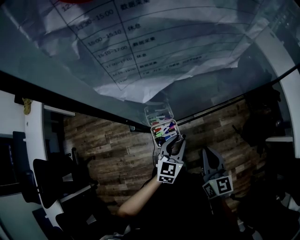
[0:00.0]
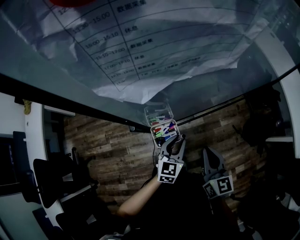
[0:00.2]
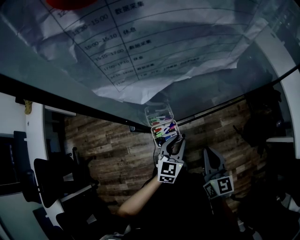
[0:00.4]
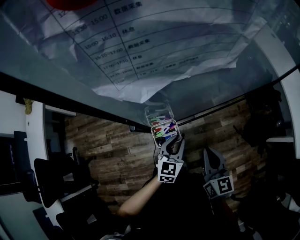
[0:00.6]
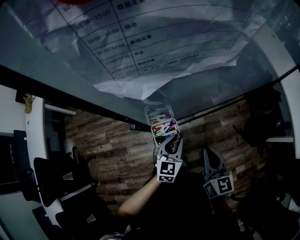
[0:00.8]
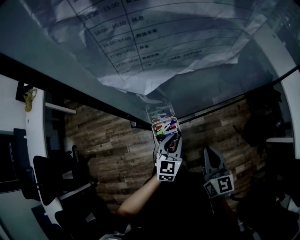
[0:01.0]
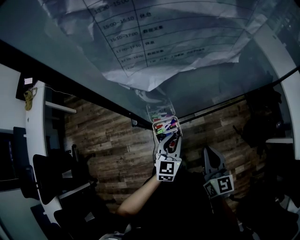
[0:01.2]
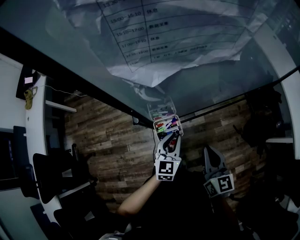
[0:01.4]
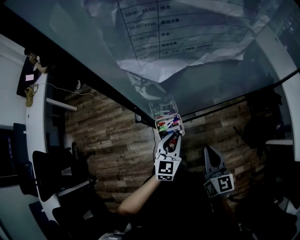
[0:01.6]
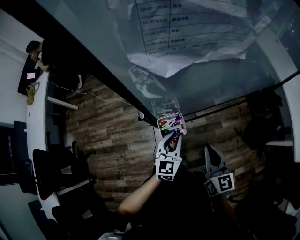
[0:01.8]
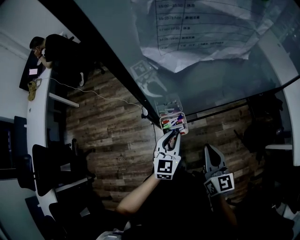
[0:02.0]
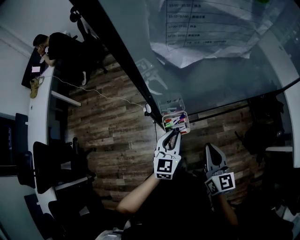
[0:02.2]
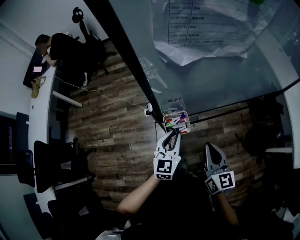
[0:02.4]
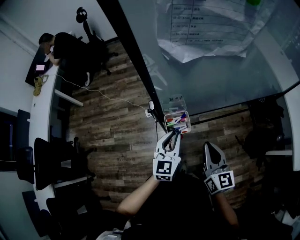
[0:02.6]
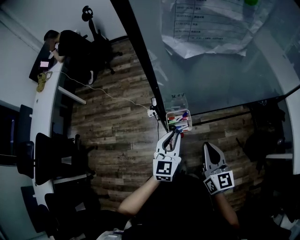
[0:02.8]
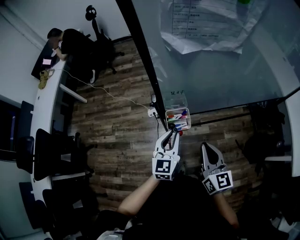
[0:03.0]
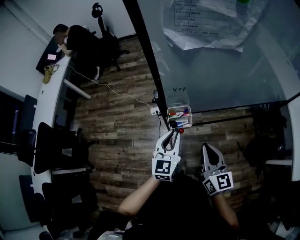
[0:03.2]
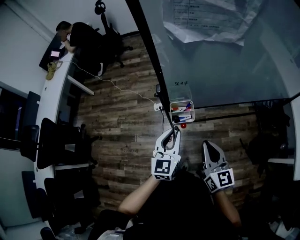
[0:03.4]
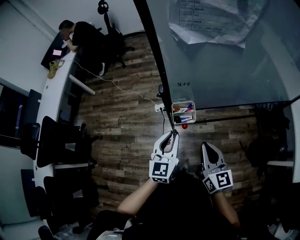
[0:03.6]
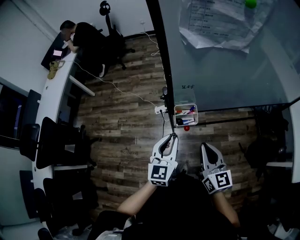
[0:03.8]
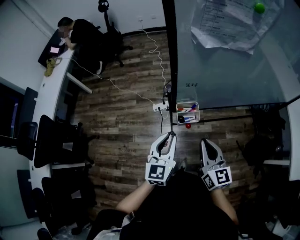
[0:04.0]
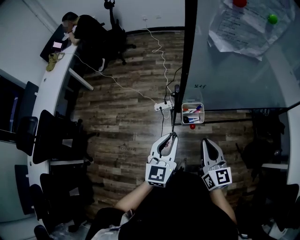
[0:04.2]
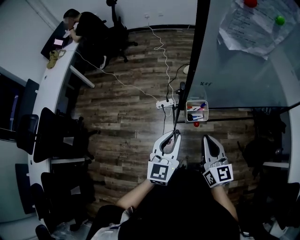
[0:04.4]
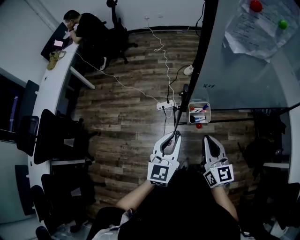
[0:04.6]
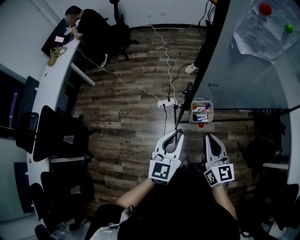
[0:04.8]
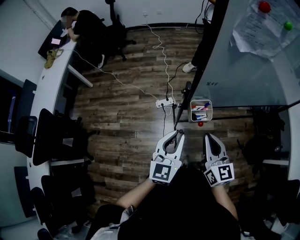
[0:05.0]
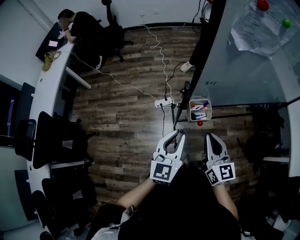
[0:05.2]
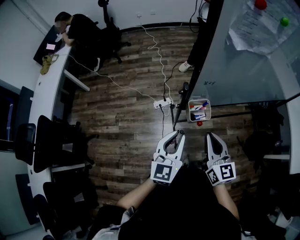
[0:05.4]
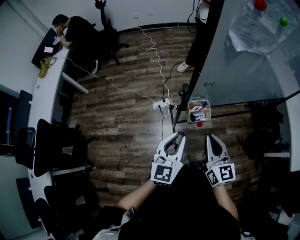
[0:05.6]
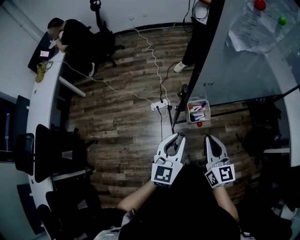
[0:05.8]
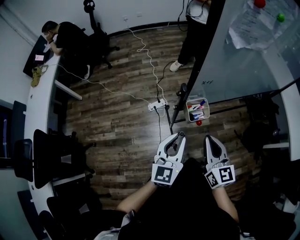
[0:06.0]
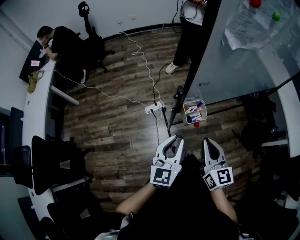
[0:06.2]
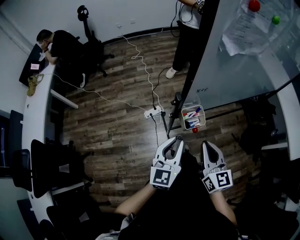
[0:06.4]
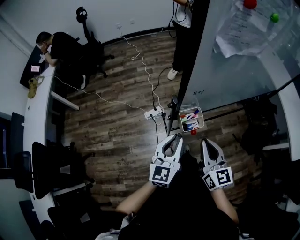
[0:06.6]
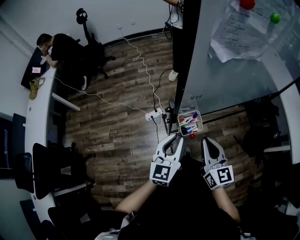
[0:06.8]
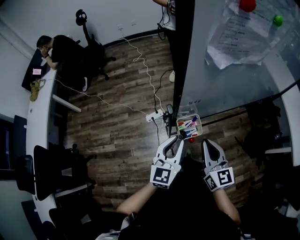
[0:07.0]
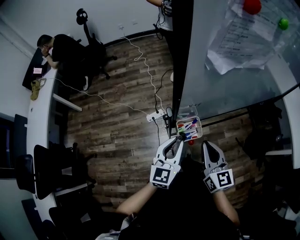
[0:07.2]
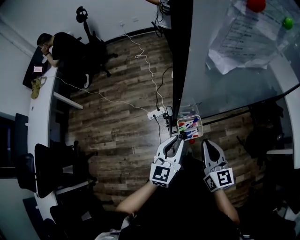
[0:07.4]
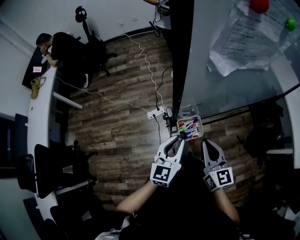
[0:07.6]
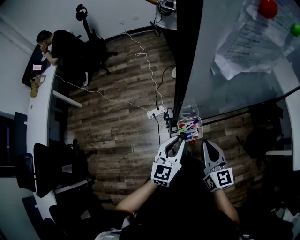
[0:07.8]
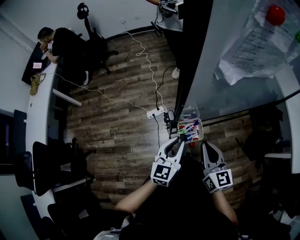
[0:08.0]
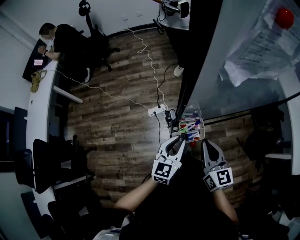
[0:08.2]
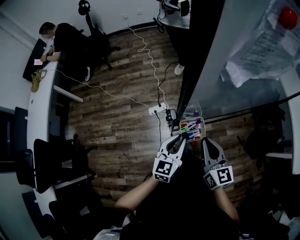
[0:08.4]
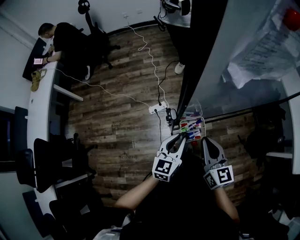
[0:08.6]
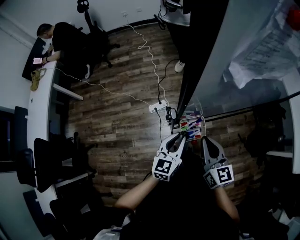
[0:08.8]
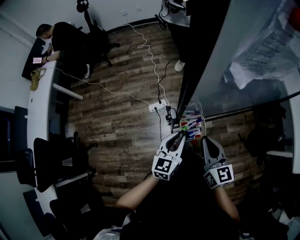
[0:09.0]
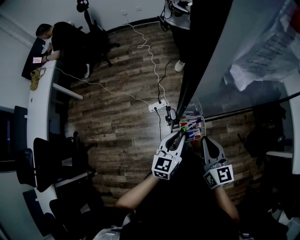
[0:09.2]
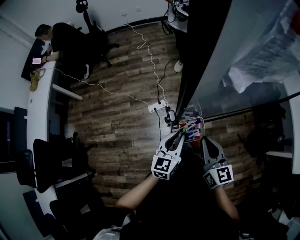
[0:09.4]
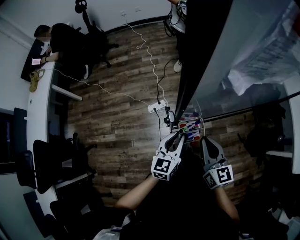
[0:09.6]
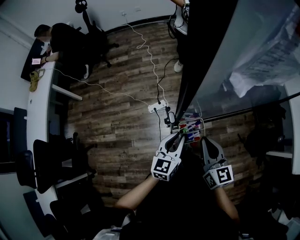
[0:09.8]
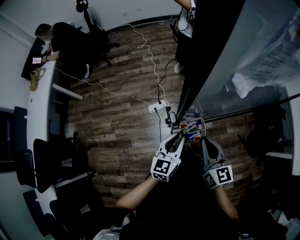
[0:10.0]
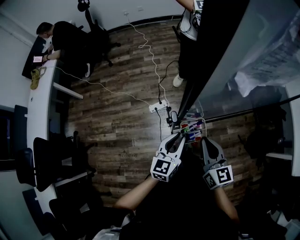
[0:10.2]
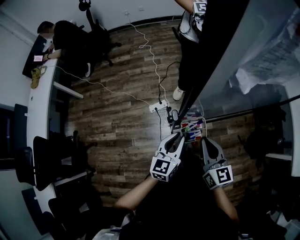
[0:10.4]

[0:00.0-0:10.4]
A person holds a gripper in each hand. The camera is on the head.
0:00.0 to 0:01.4: The grippers move only a little.
0:01.4 to 0:03.0: The right gripper ends up roughly 5 cm from where it was, while the left gripper heads upward, covering roughly 5 cm.
0:03.0 to 0:04.4: The left gripper heads to the left, upward and backward, covering about 15 cm, while the right gripper shifts some 10 cm to the left.
0:04.4 to 0:06.0: There are only small adjustments of the grippers.
0:06.0 to 0:07.4: Both grippers move forward, about 10 cm.
0:07.4 to 0:09.0: The left gripper is displaced downward by roughly 5 cm.
0:09.0 to 0:10.4: Both grippers stay about where they are.

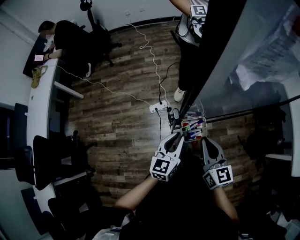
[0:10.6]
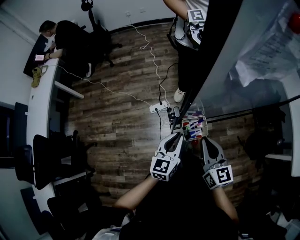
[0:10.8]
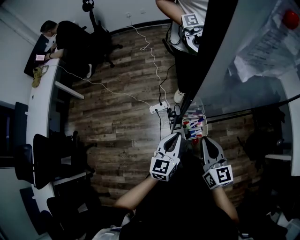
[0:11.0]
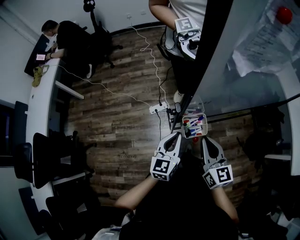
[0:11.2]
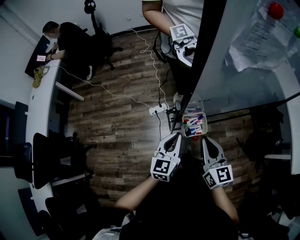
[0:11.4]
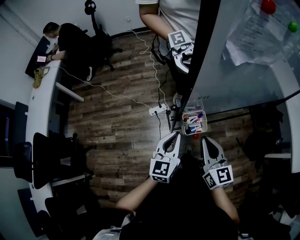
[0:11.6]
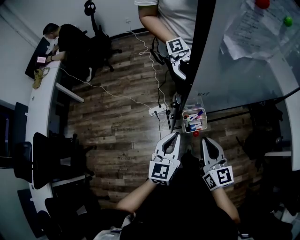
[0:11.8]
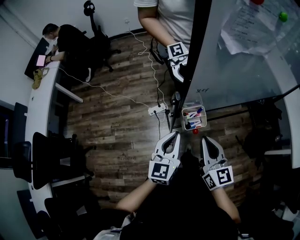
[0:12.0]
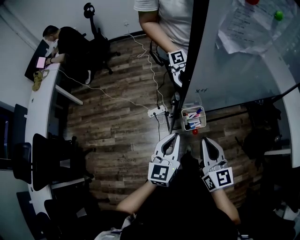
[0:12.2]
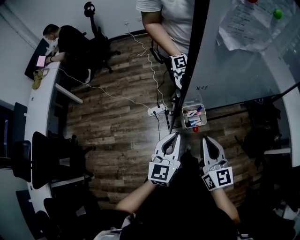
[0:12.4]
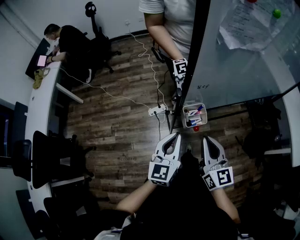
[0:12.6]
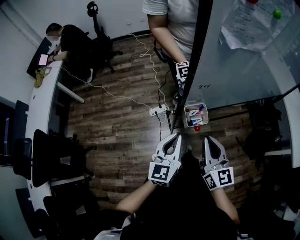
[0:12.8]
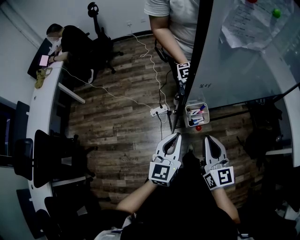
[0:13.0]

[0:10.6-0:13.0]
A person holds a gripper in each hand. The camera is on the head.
0:10.6 to 0:11.8: The left gripper moves upward and backward, roughly 10 cm. Meanwhile the right gripper goes some 5 cm backward.
0:11.8 to 0:13.0: The grippers move only a little.

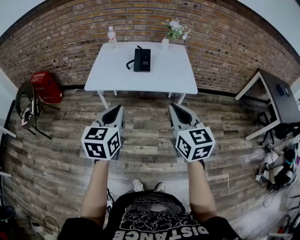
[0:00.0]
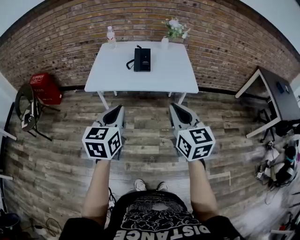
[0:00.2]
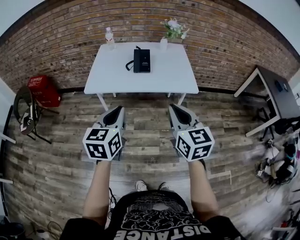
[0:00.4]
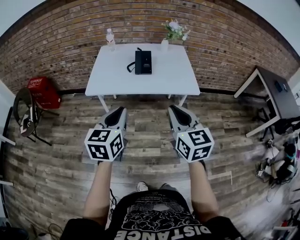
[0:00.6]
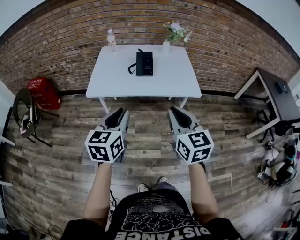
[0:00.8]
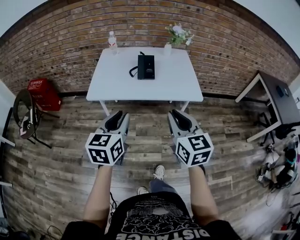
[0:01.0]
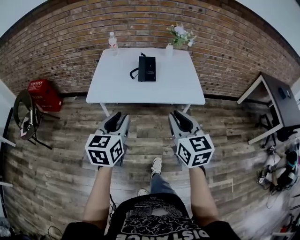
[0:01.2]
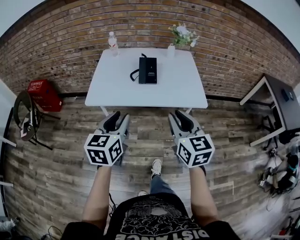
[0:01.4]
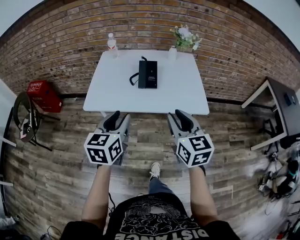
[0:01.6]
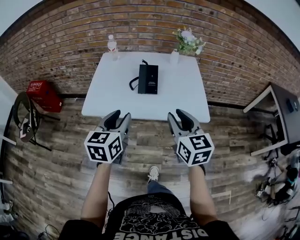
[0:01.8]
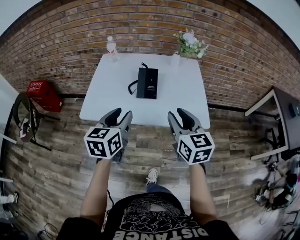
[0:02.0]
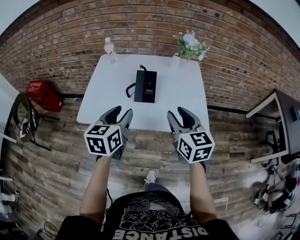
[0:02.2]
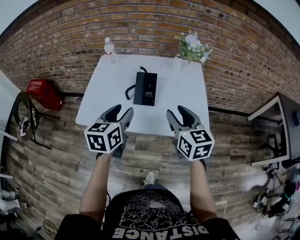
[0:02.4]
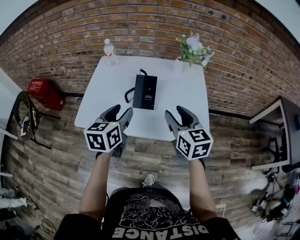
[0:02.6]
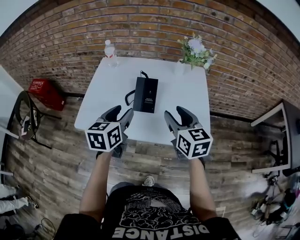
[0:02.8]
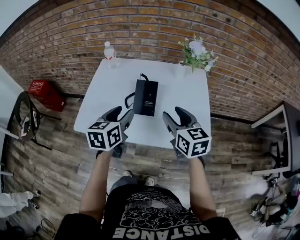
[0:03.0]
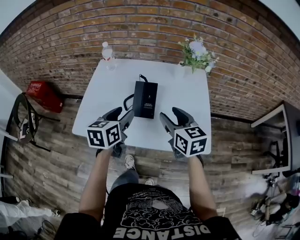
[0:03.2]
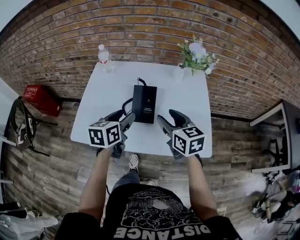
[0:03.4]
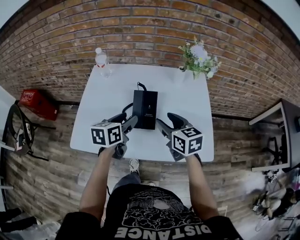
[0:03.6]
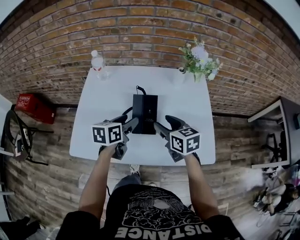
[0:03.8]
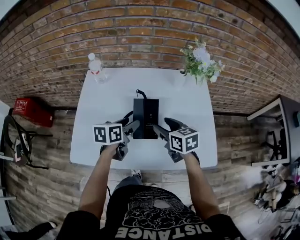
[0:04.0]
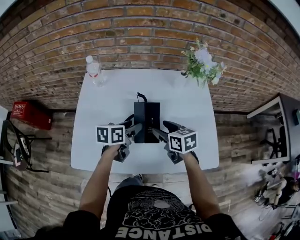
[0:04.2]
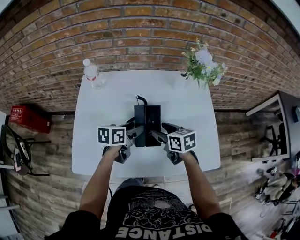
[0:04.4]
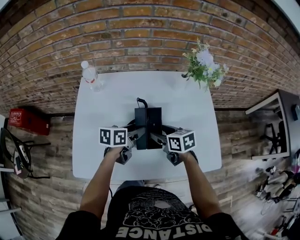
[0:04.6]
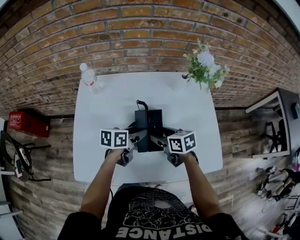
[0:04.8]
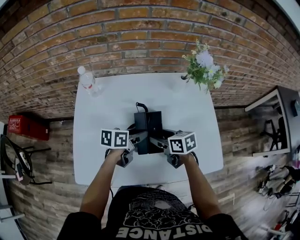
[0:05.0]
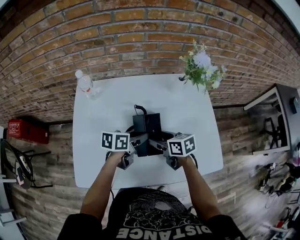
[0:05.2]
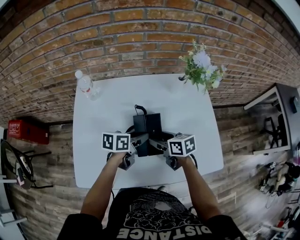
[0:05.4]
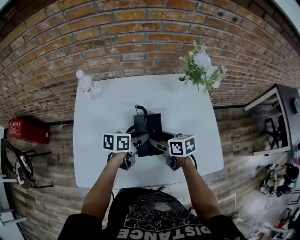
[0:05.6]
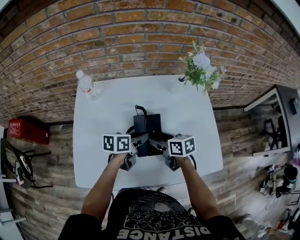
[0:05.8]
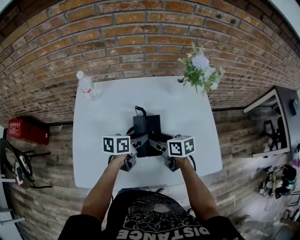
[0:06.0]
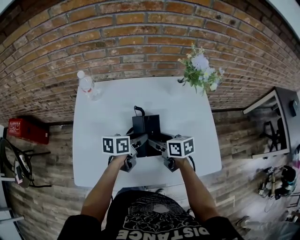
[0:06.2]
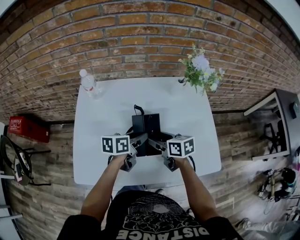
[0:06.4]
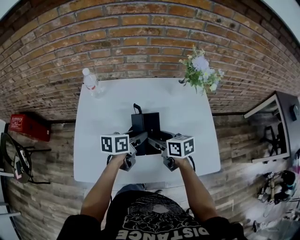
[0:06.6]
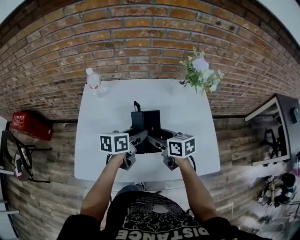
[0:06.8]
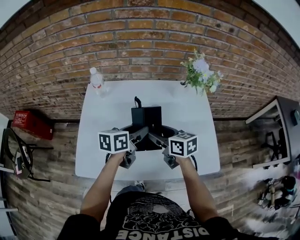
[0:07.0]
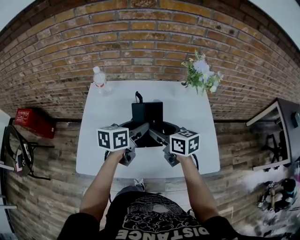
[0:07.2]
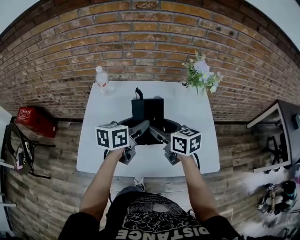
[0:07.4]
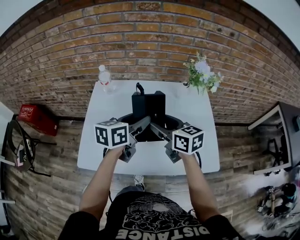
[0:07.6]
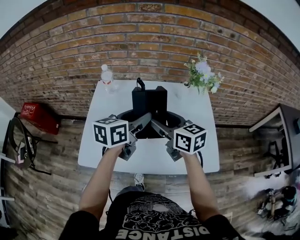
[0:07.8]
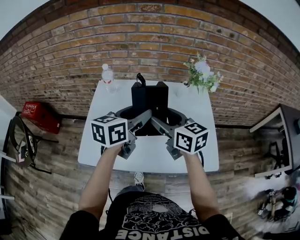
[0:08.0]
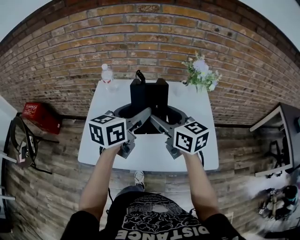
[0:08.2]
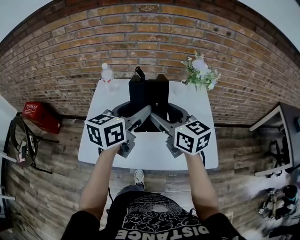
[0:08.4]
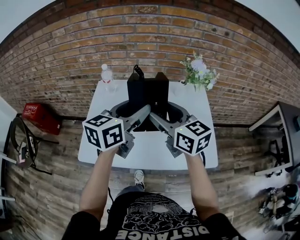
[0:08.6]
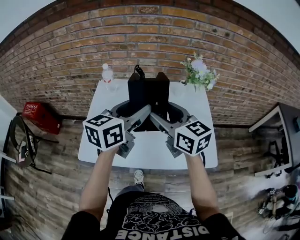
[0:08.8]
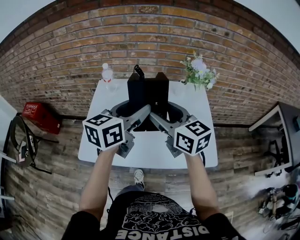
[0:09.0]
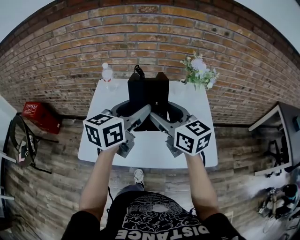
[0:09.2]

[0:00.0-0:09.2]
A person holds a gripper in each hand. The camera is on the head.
0:00.0 to 0:01.6: The grippers both shift forward by some 15 cm. The left gripper opens.
0:01.6 to 0:03.0: Both grippers travel together forward, approximately 25 cm. The right gripper opens.
0:03.0 to 0:04.6: The left gripper goes roughly 25 cm forward and downward, and turns by about 40 degrees; the right gripper heads downward, forward and to the left, covering roughly 25 cm, and turns by some 30 degrees.
0:04.6 to 0:06.2: The grippers stay close to where they were, moving slightly.
0:06.2 to 0:07.6: The grippers both shift upward by about 15 cm. The right gripper turns by some 20 degrees. Meanwhile the left gripper rotates about 20 degrees.
0:07.6 to 0:09.2: Both grippers travel together upward and backward, some 10 cm.

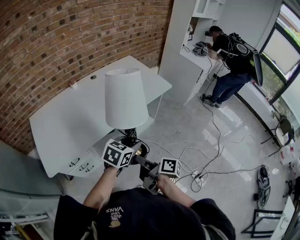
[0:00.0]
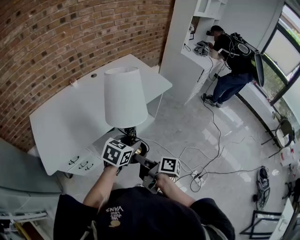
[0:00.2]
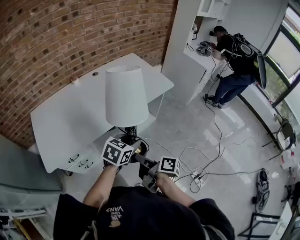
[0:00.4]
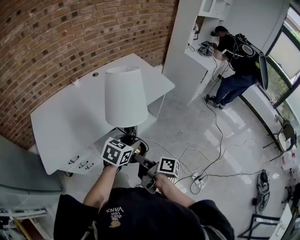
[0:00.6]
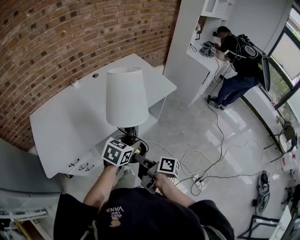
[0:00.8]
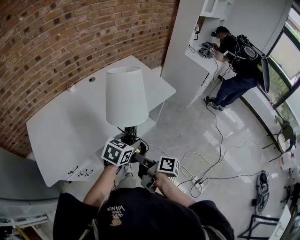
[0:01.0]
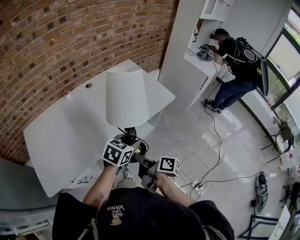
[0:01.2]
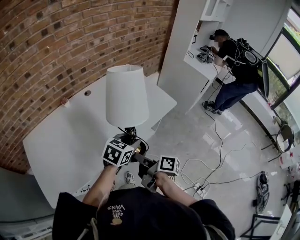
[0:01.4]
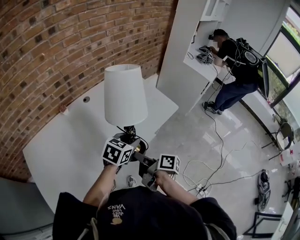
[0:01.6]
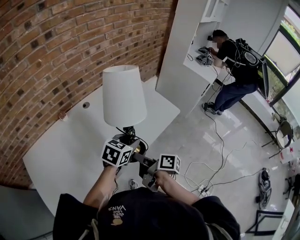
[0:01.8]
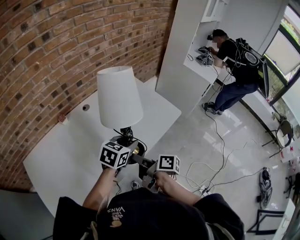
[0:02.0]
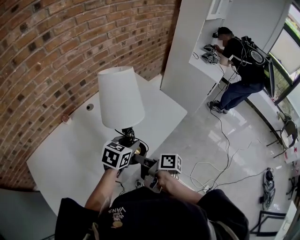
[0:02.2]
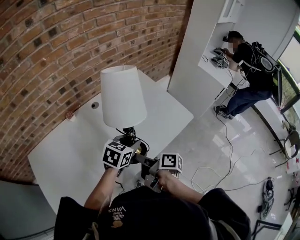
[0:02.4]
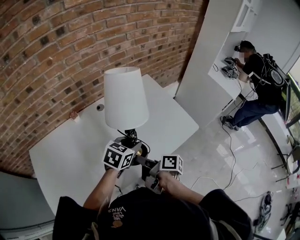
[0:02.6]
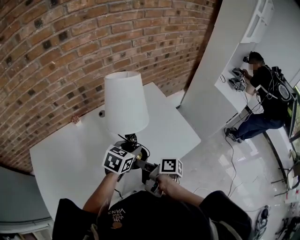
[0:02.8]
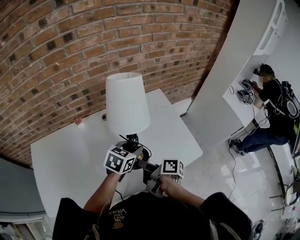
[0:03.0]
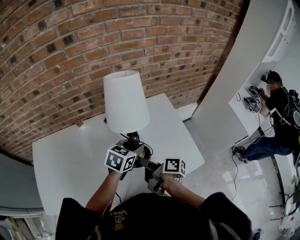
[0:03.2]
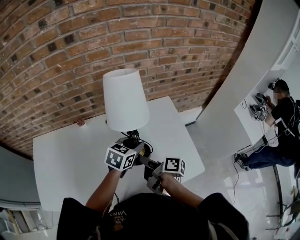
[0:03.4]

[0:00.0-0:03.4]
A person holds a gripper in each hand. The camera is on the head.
0:00.0 to 0:01.6: The grippers both shift forward by about 25 cm.
0:01.6 to 0:03.4: The left gripper changes place by about 30 cm, and rotates approximately 30 degrees; the right gripper shifts by about 30 cm, and rotates about 30 degrees.
